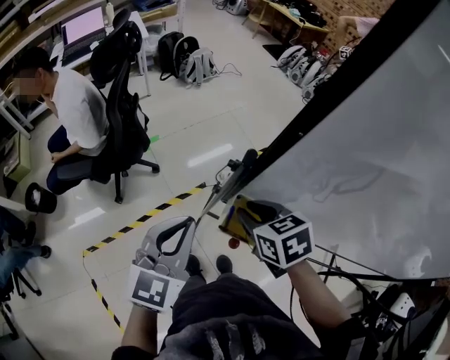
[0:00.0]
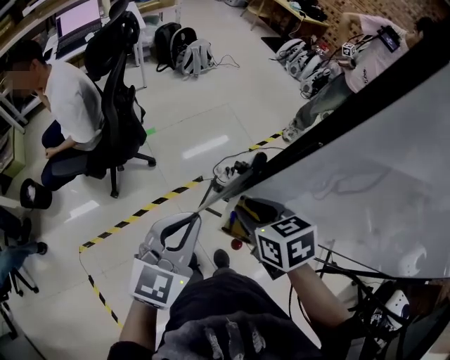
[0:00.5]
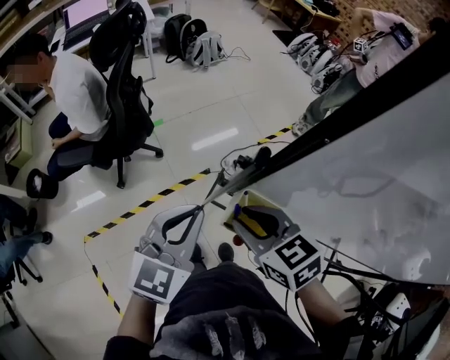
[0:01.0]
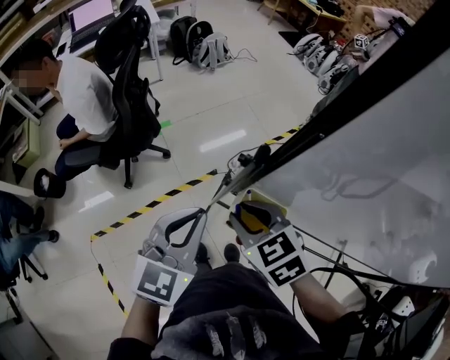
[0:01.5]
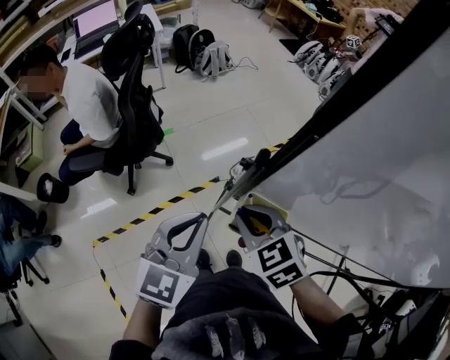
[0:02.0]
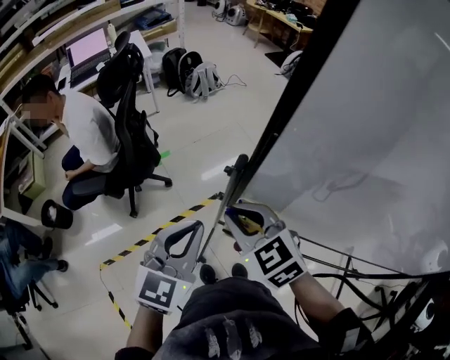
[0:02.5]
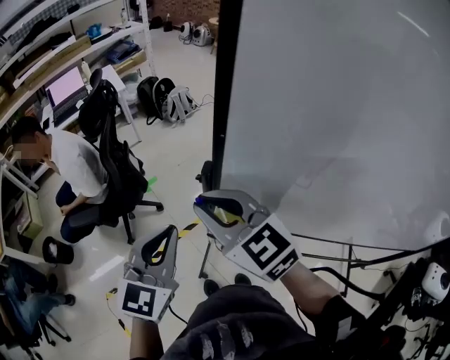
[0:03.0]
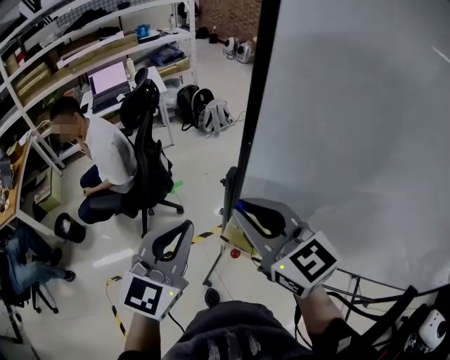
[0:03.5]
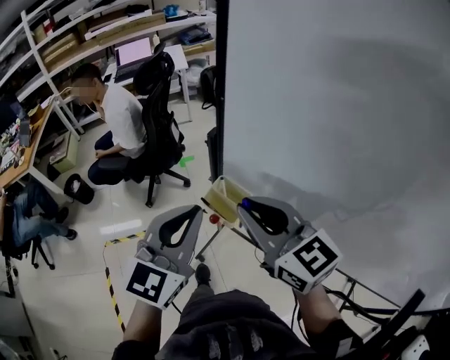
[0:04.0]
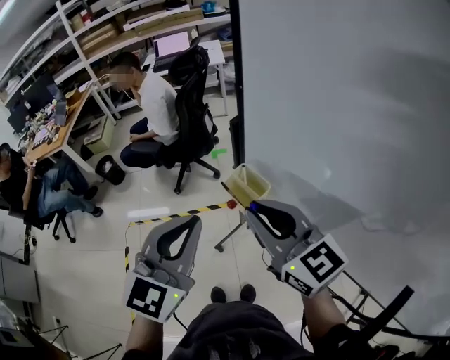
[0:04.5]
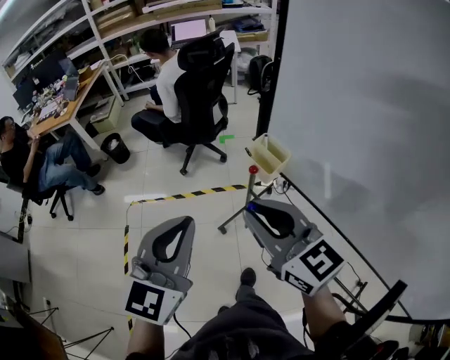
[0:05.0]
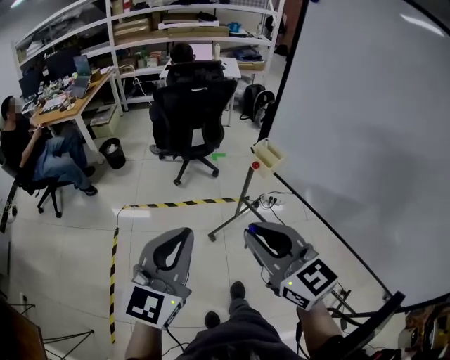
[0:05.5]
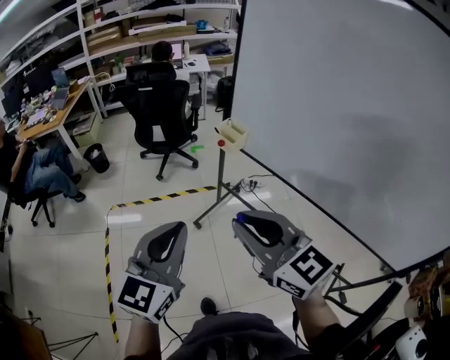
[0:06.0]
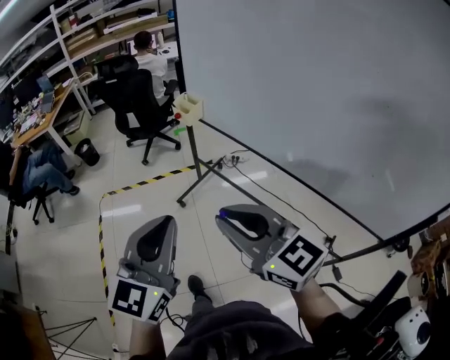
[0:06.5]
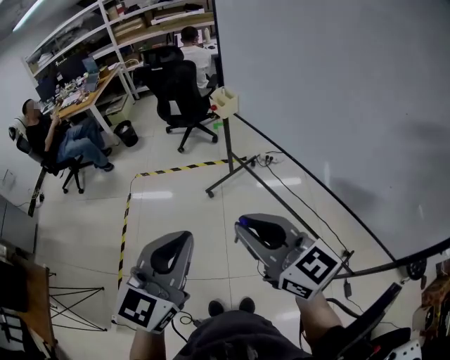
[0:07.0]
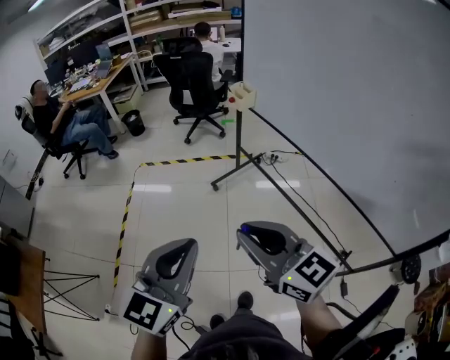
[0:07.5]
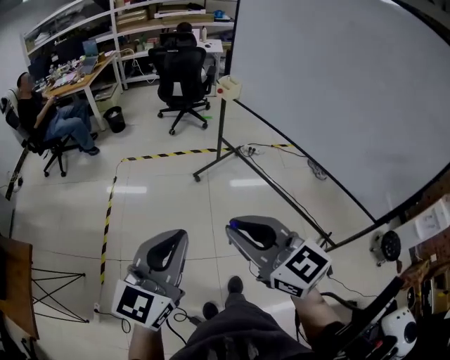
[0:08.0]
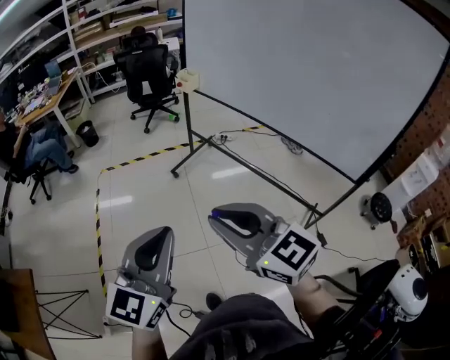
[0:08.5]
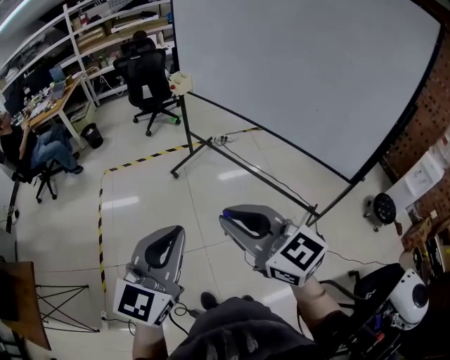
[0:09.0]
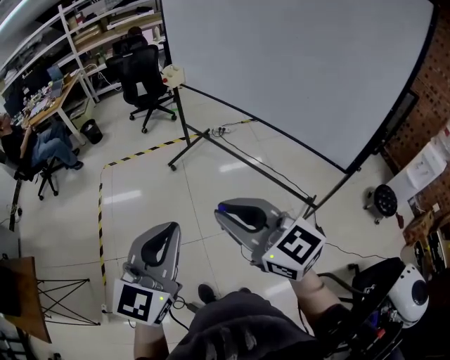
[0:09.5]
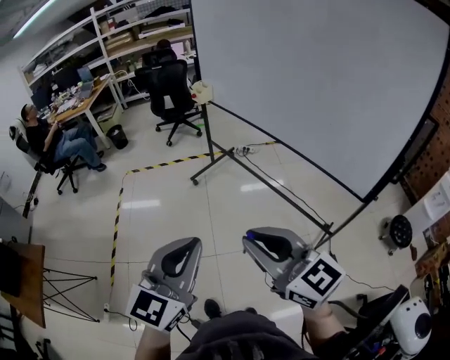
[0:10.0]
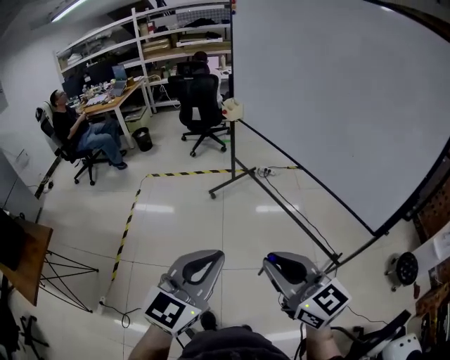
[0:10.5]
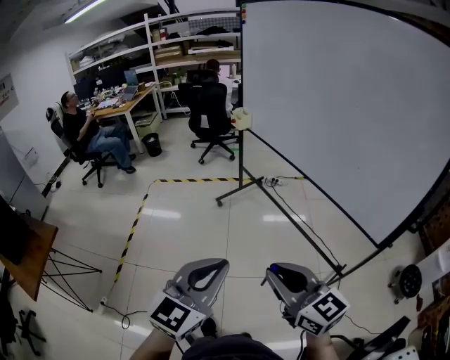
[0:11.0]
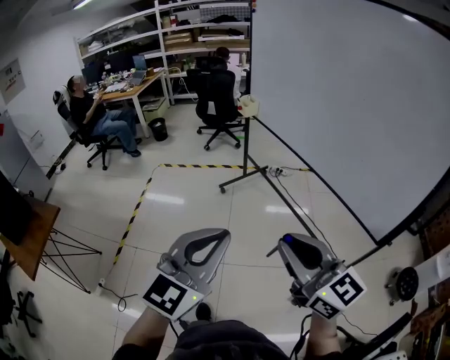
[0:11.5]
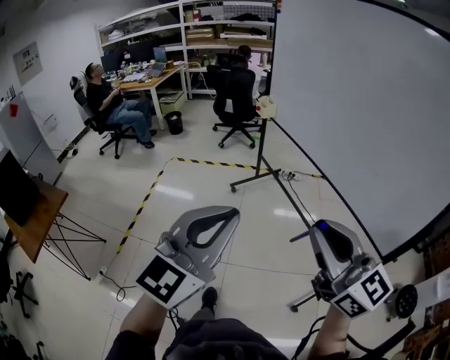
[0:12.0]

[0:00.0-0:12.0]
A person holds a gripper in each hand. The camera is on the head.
0:00.0 to 0:02.0: The right gripper swivels roughly 20 degrees.
0:02.0 to 0:04.0: Both grippers travel together upward, backward and to the right, approximately 20 cm. The right gripper points its fingers about 40 degrees further upward.
0:04.0 to 0:06.0: Both grippers are carried backward, roughly 40 cm.
0:06.0 to 0:08.0: The grippers both shift backward by approximately 40 cm.
0:08.0 to 0:10.0: The grippers both shift to the right and backward by approximately 20 cm.
0:10.0 to 0:12.0: The right gripper is displaced to the right and upward by roughly 10 cm. Meanwhile the left gripper is displaced upward by roughly 10 cm.

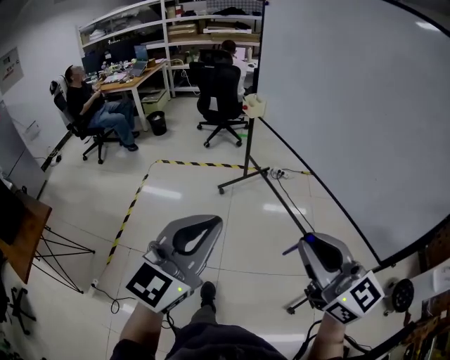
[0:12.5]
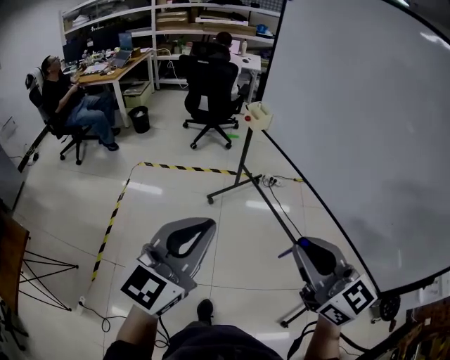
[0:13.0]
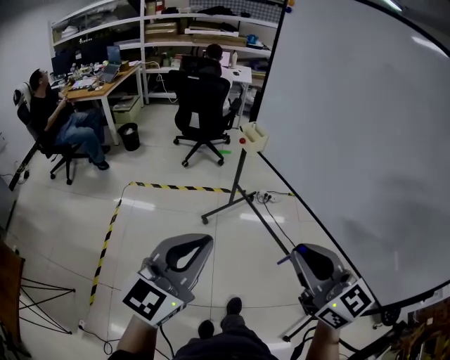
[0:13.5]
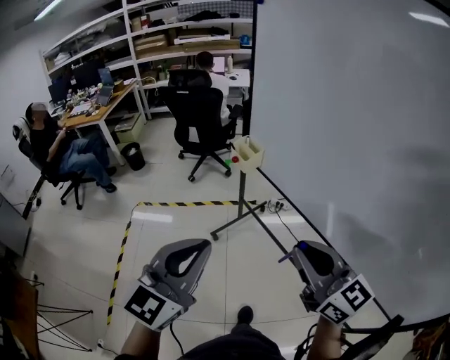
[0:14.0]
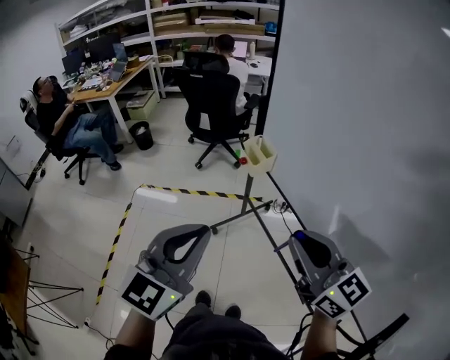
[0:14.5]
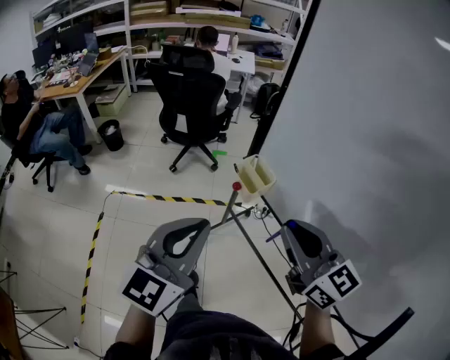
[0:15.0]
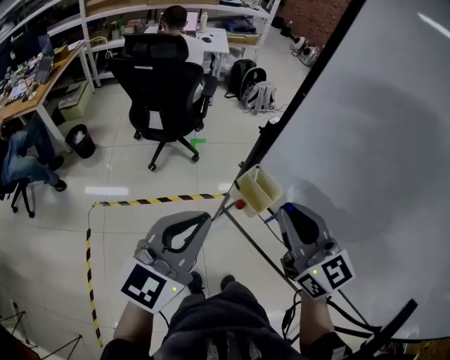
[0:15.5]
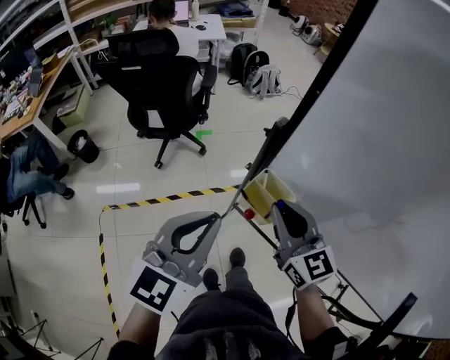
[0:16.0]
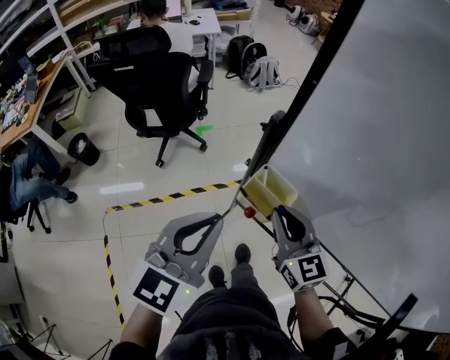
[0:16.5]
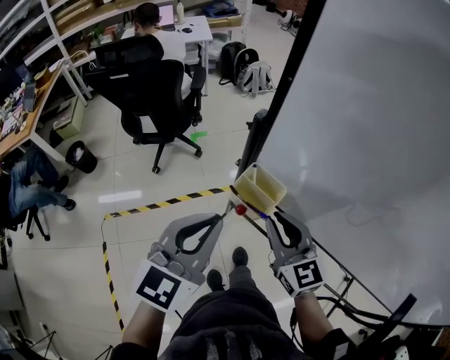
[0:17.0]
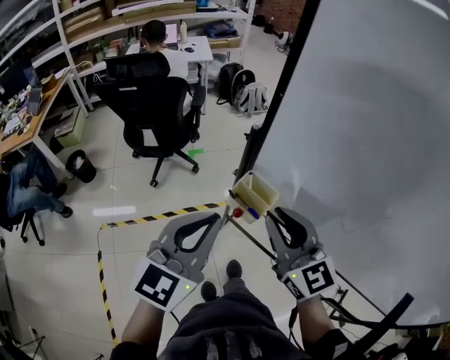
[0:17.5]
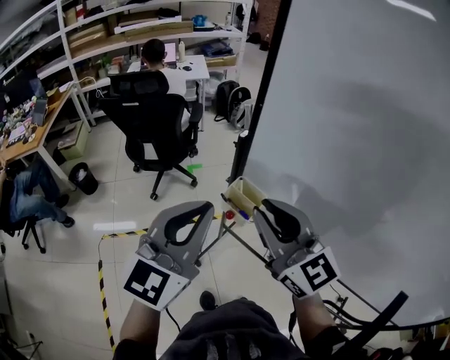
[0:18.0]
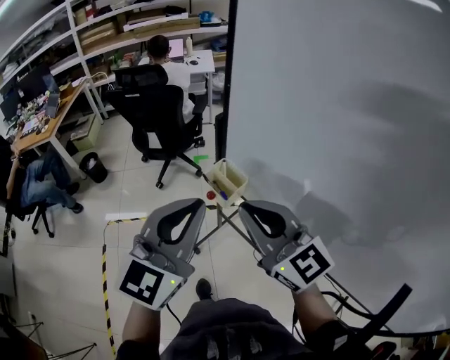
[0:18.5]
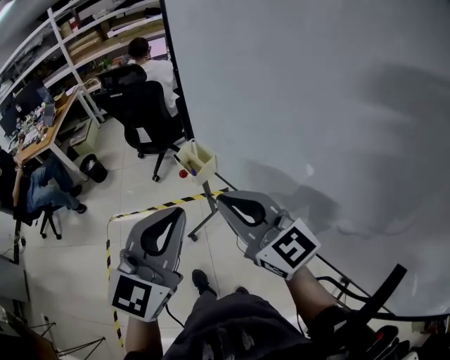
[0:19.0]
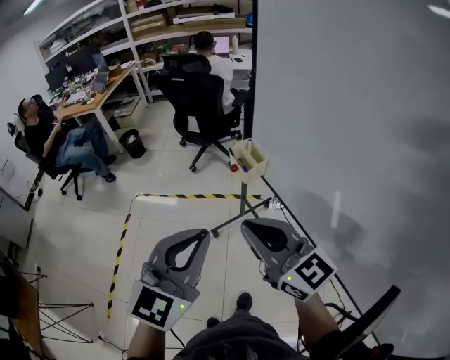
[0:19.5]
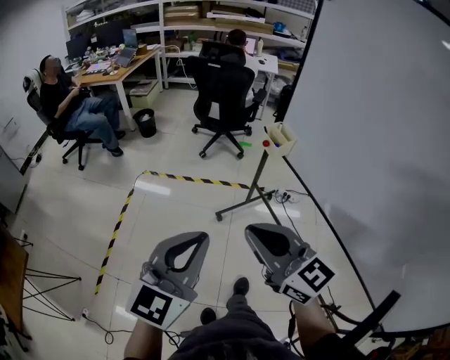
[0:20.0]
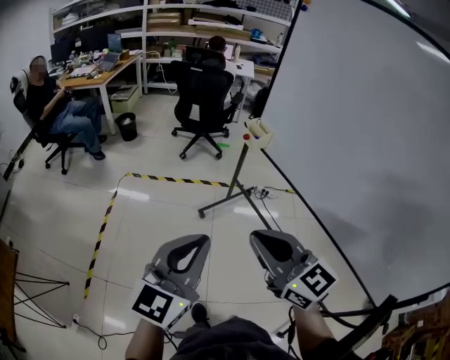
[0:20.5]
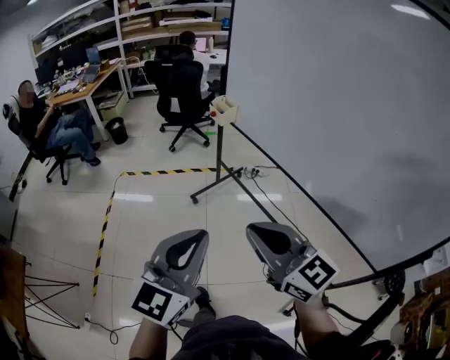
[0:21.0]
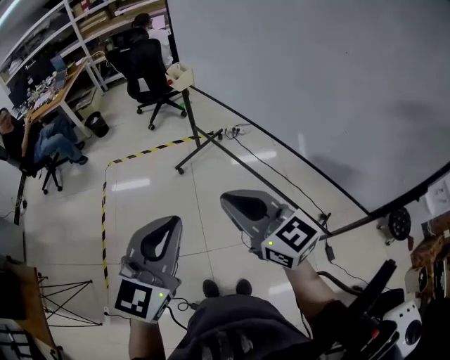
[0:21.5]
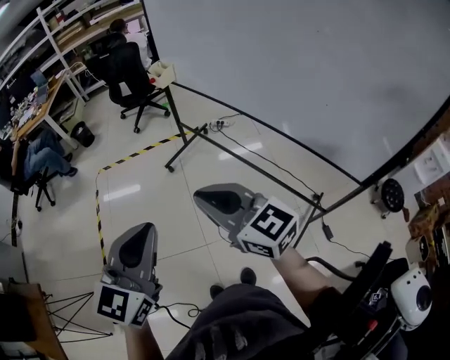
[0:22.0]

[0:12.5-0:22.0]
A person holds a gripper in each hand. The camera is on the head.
0:12.5 to 0:14.5: Both grippers are carried forward, about 50 cm.
0:14.5 to 0:16.5: The left gripper changes place by about 35 cm, and turns by approximately 20 degrees; the right gripper changes place by roughly 40 cm, and turns by roughly 30 degrees.
0:16.5 to 0:18.0: The left gripper moves upward and backward, approximately 15 cm. Meanwhile the right gripper shifts approximately 20 cm upward and backward, and swivels roughly 20 degrees.
0:18.0 to 0:20.0: The right gripper changes place by some 35 cm, and turns by roughly 30 degrees. The left gripper changes place by some 40 cm, and turns by some 20 degrees.
0:20.0 to 0:22.0: The two grippers go about 30 cm backward.

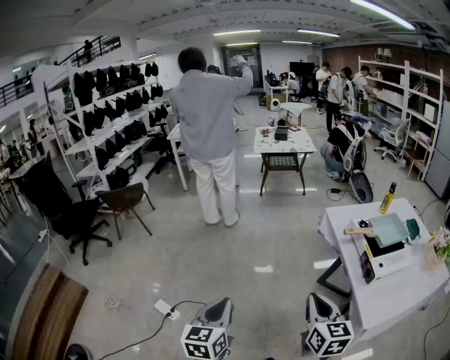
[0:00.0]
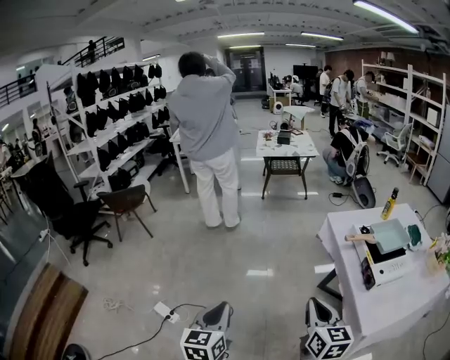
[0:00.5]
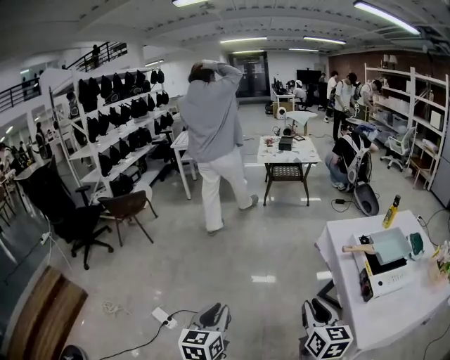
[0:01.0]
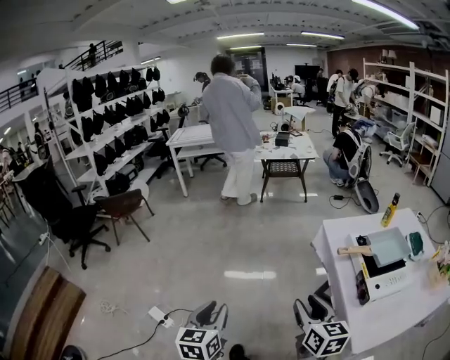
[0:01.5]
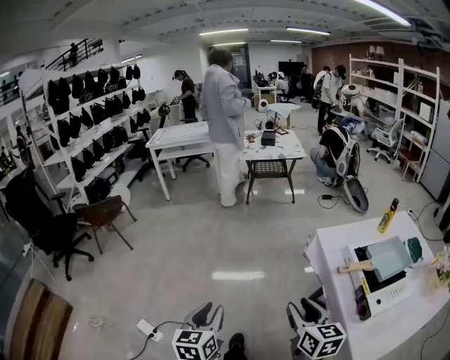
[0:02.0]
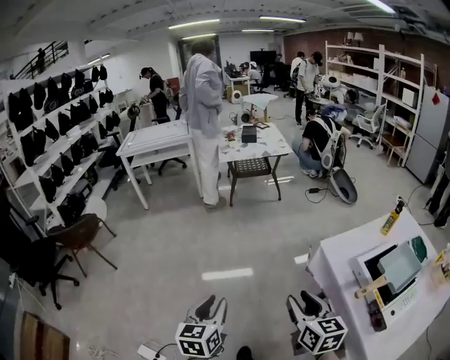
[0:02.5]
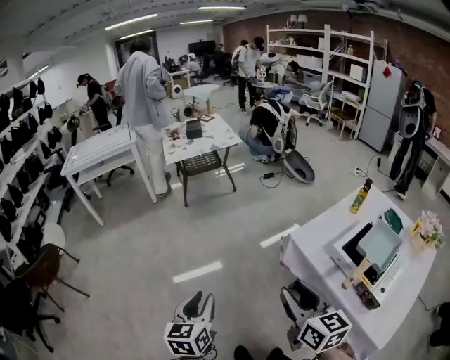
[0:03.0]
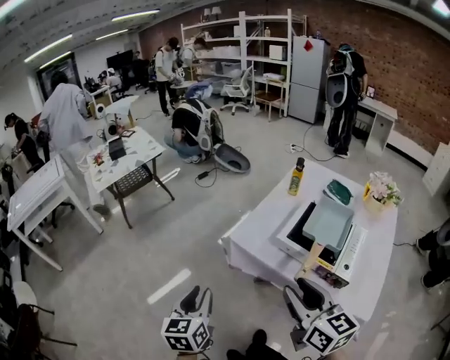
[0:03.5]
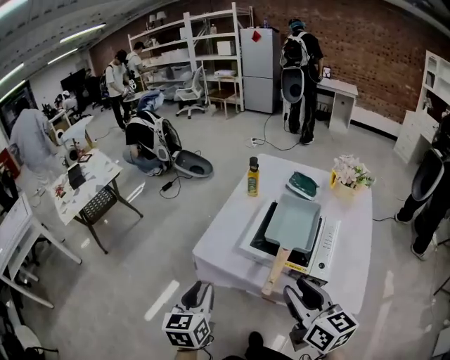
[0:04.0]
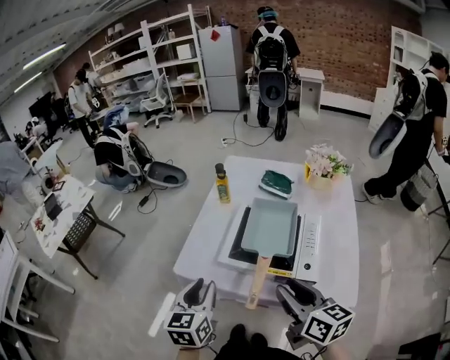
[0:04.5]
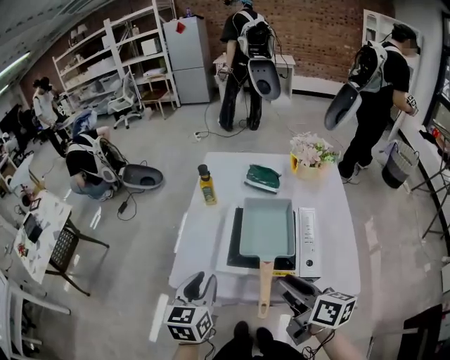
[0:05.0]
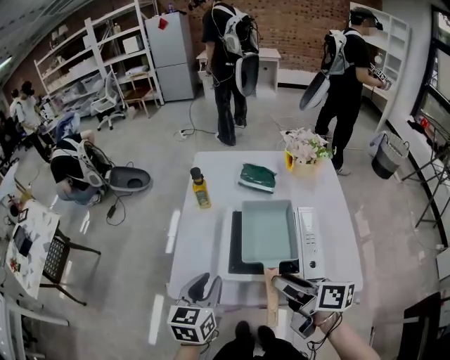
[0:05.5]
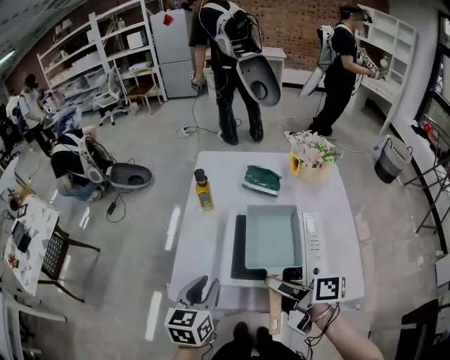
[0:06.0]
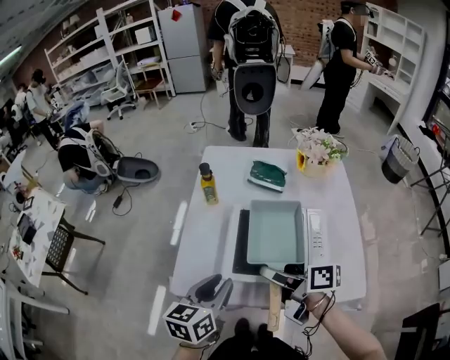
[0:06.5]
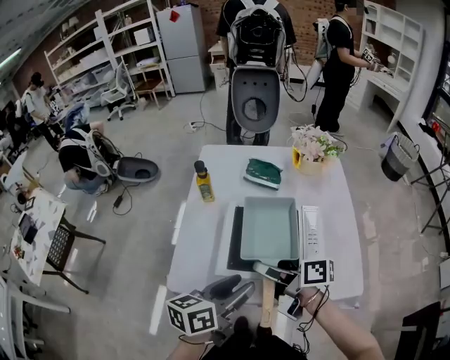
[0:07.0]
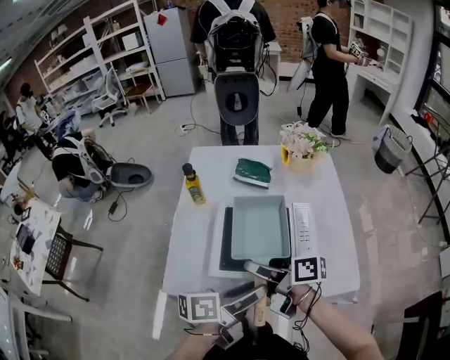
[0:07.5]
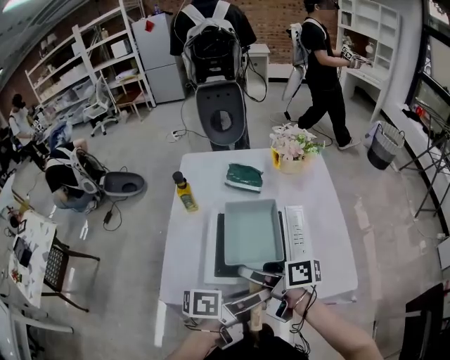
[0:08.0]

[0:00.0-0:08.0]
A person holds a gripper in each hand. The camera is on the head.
0:00.0 to 0:02.0: Both grippers move forward, some 20 cm. The right gripper opens.
0:02.0 to 0:04.0: The right gripper moves about 25 cm, and swivels about 50 degrees. Meanwhile the left gripper shifts by some 40 cm, and swivels approximately 60 degrees.
0:04.0 to 0:06.0: The right gripper shifts approximately 15 cm forward and downward, rotates around the line of its fingers by approximately 50 degrees, clockwise from behind, and opens up; the left gripper heads forward, covering approximately 20 cm, and changes its angle by about 30 degrees.
0:06.0 to 0:08.0: The left gripper shifts approximately 20 cm to the right, and turns by approximately 70 degrees.
